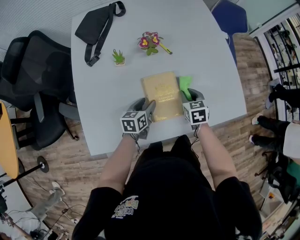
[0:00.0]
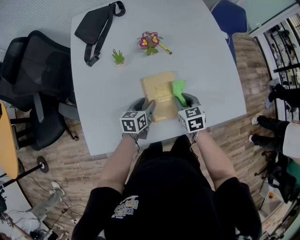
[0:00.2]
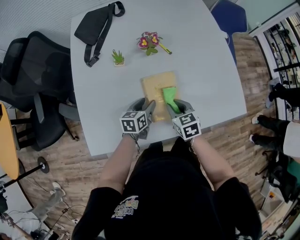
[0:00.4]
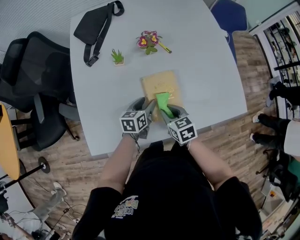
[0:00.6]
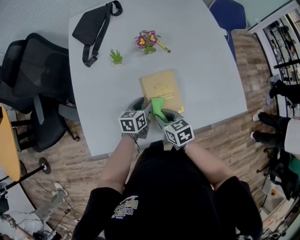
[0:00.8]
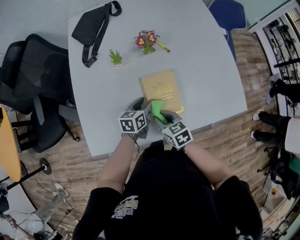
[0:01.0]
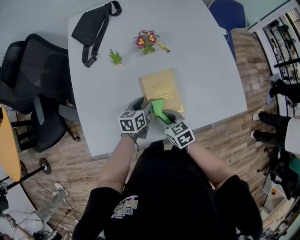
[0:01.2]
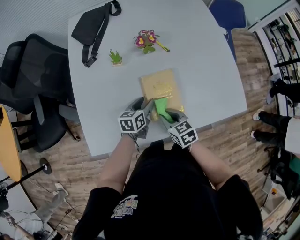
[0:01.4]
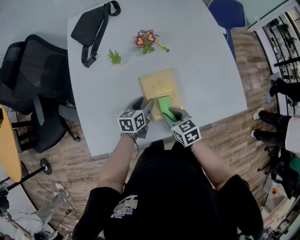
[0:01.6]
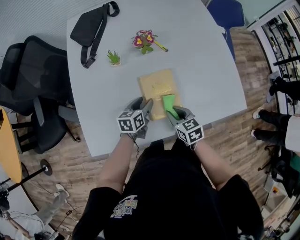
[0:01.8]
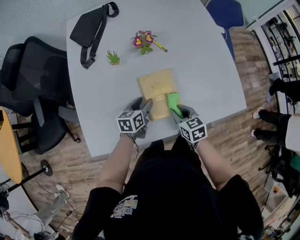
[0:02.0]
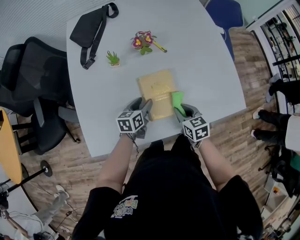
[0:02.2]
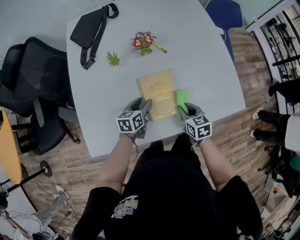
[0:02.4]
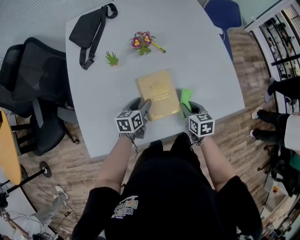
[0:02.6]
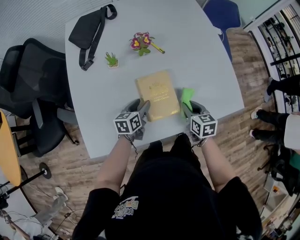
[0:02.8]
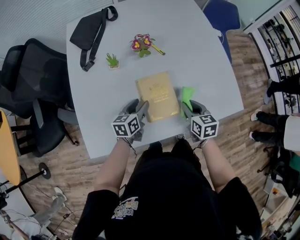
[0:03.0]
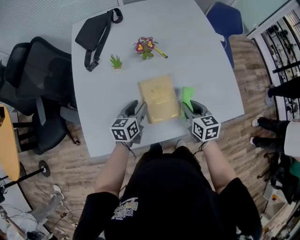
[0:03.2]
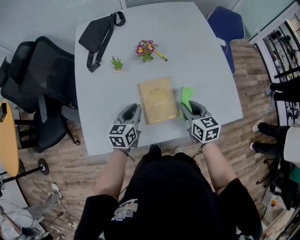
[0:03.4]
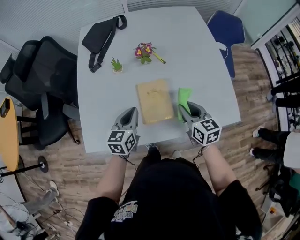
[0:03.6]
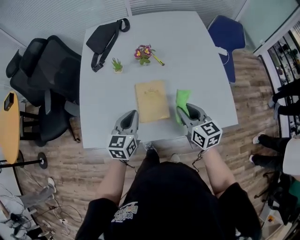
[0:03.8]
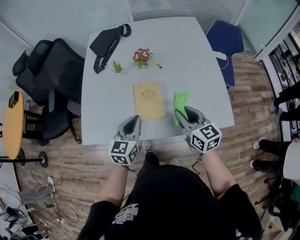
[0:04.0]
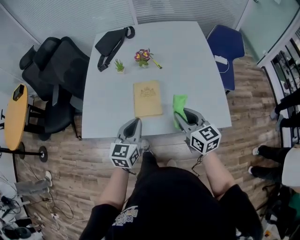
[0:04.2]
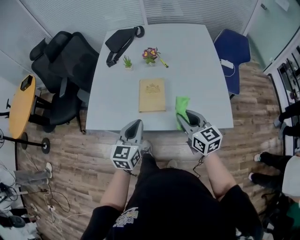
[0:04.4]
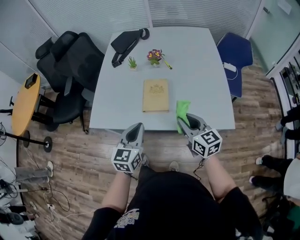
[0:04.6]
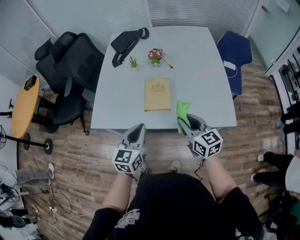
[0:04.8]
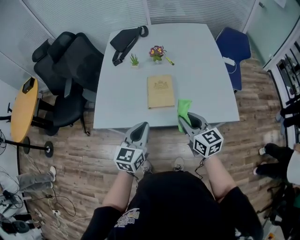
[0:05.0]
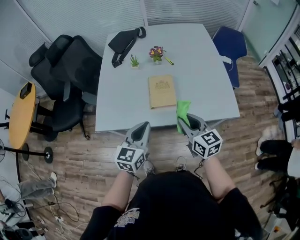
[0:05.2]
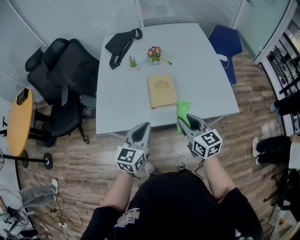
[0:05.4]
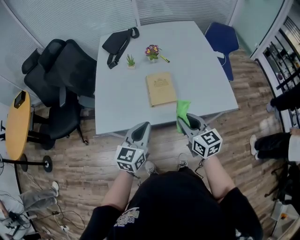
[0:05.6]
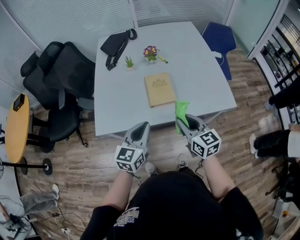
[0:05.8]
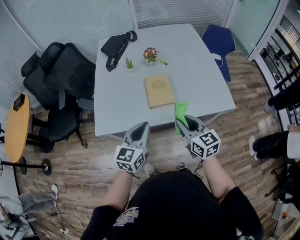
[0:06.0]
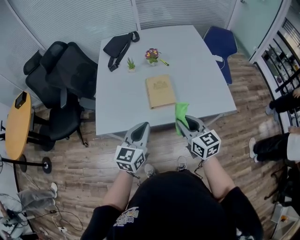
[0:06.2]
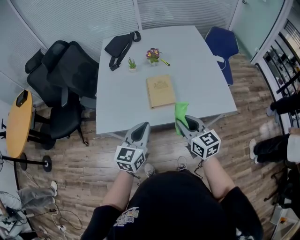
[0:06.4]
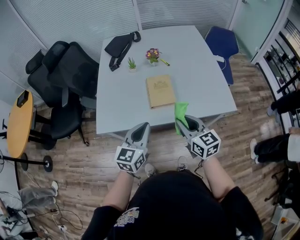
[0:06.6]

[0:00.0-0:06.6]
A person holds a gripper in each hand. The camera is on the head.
0:00.0 to 0:01.6: The right gripper heads backward and to the left, covering roughly 15 cm, and changes its angle by about 20 degrees.
0:01.6 to 0:03.2: The right gripper shifts roughly 15 cm to the right, upward and forward. The left gripper shifts roughly 5 cm upward.
0:03.2 to 0:05.0: The grippers both shift backward and upward by some 25 cm. The left gripper turns by some 30 degrees, and closes up; the right gripper swivels some 30 degrees.
0:05.0 to 0:06.6: The right gripper moves some 5 cm.

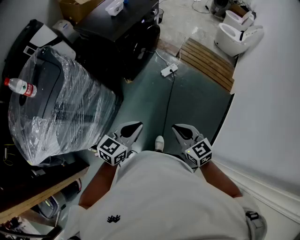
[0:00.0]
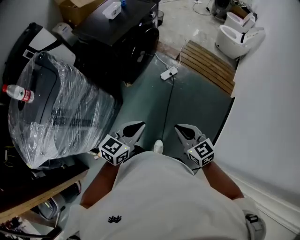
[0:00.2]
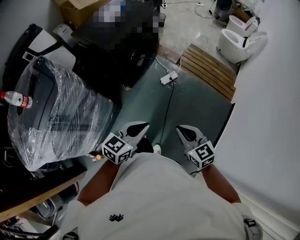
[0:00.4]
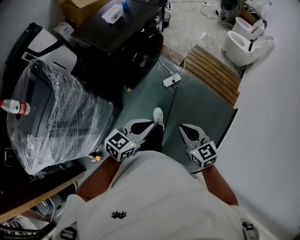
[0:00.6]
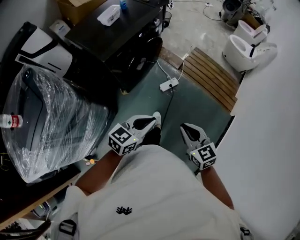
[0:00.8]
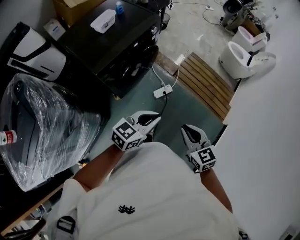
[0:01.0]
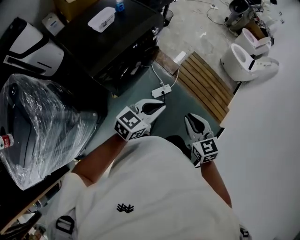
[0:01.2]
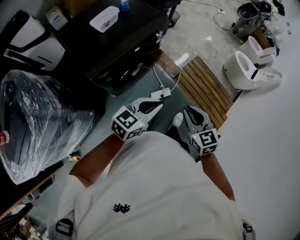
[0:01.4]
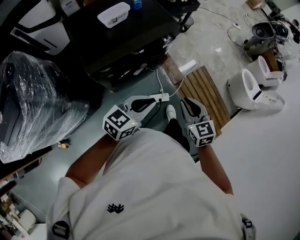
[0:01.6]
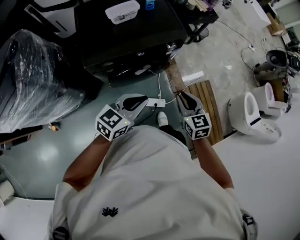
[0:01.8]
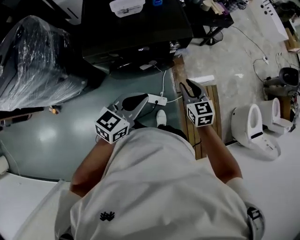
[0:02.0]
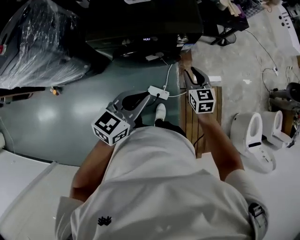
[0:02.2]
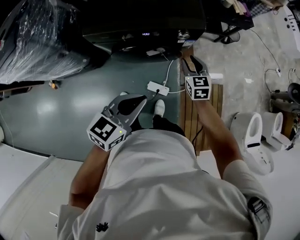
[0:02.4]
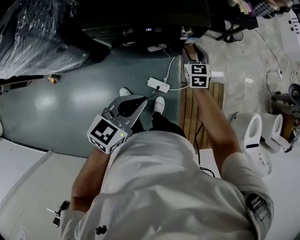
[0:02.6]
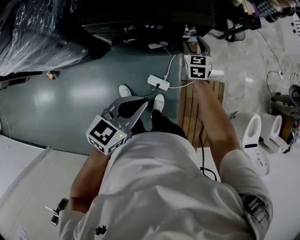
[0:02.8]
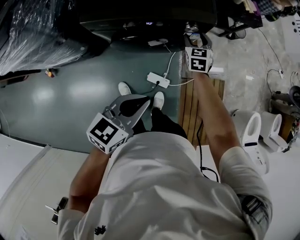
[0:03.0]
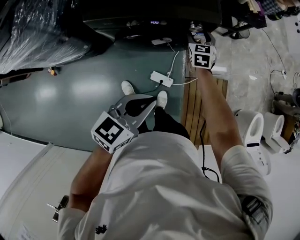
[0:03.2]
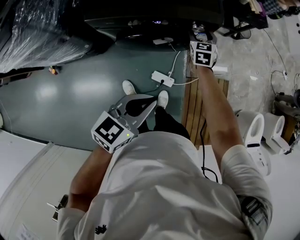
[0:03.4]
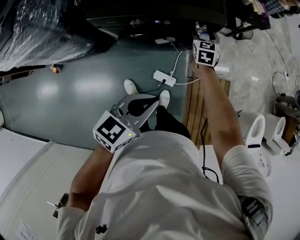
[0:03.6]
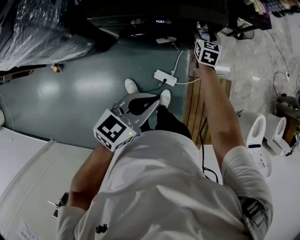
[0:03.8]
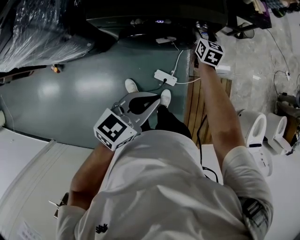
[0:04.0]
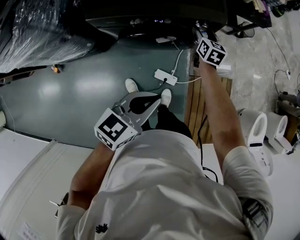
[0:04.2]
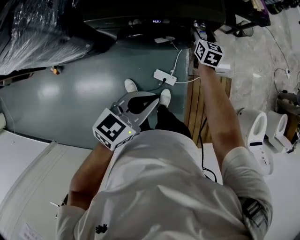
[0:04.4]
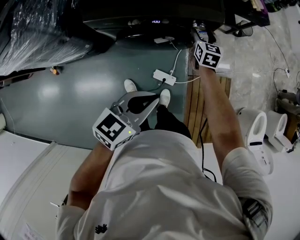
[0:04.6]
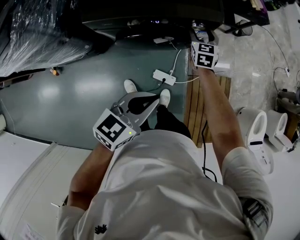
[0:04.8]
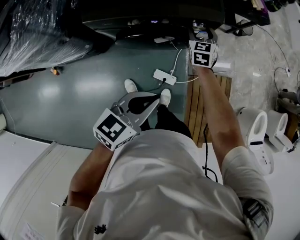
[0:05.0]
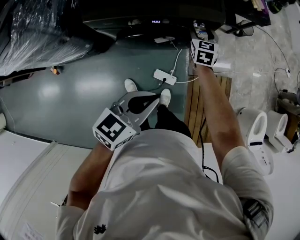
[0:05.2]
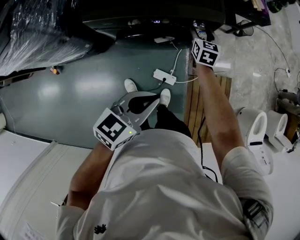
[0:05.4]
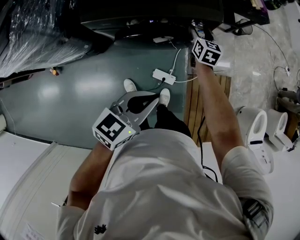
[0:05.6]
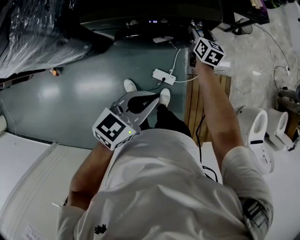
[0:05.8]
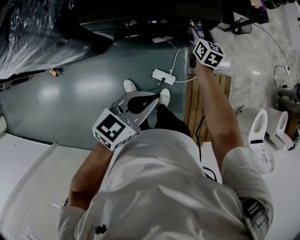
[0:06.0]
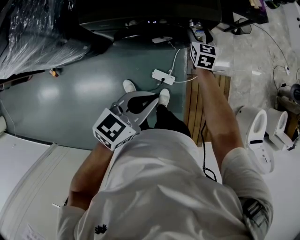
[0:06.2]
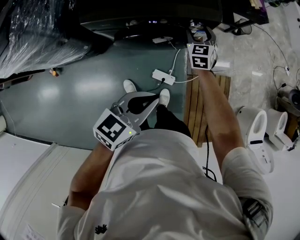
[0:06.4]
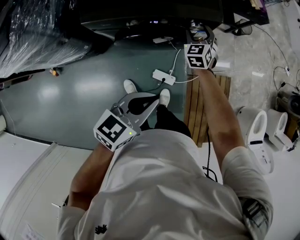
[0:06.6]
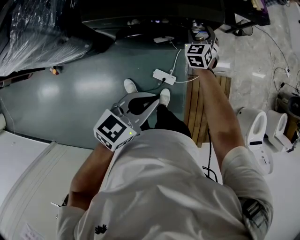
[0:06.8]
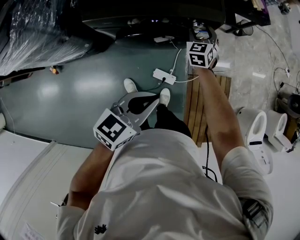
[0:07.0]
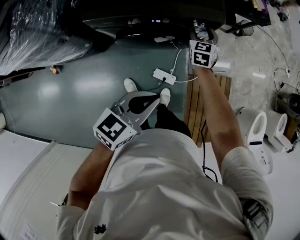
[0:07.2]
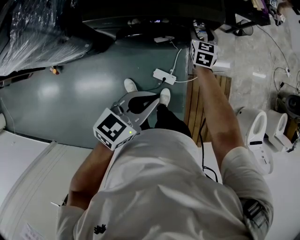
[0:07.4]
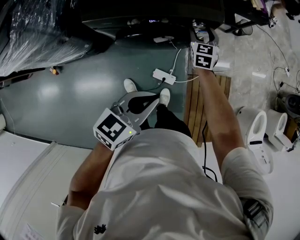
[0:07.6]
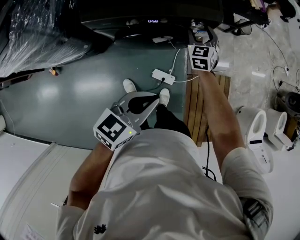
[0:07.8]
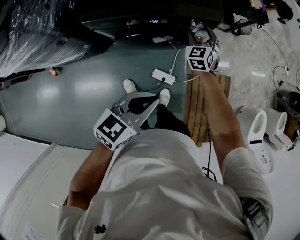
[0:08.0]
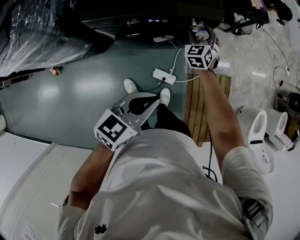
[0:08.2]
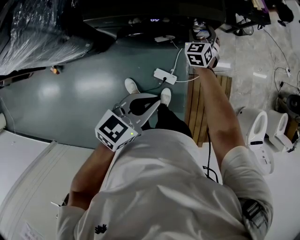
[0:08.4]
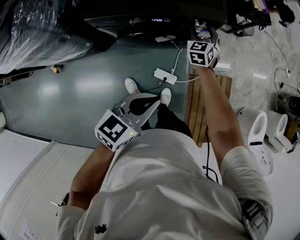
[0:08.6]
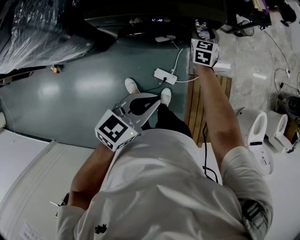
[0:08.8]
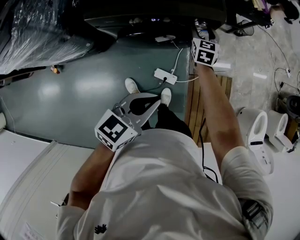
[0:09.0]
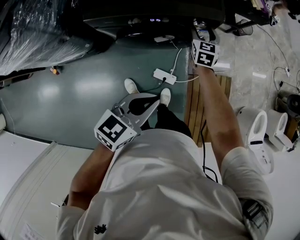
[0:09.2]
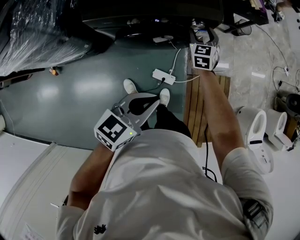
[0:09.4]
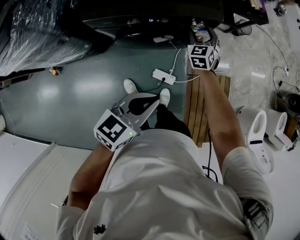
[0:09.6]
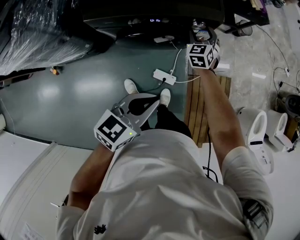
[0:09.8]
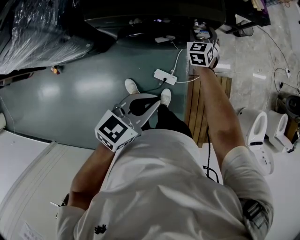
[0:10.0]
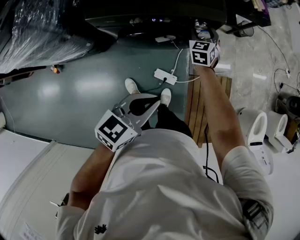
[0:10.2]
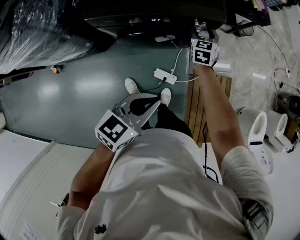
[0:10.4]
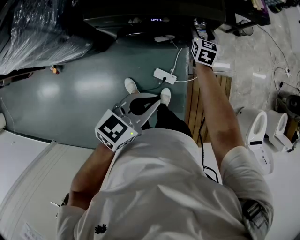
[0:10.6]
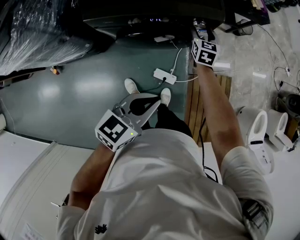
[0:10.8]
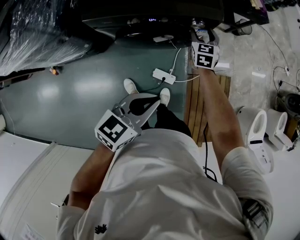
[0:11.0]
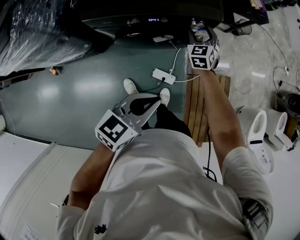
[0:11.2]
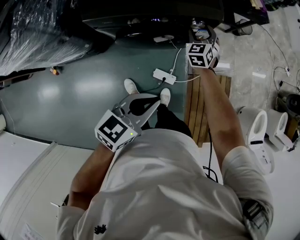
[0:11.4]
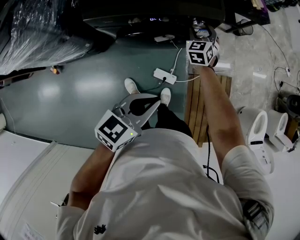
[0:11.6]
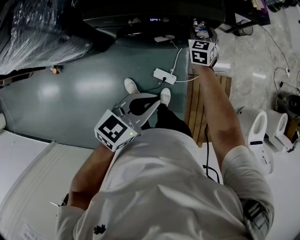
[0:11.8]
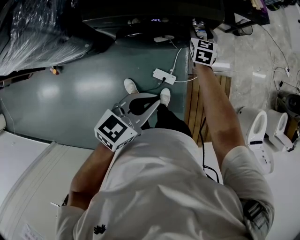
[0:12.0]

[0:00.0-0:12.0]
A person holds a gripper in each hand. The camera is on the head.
0:00.0 to 0:01.6: Both grippers are carried forward, approximately 60 cm.
0:01.6 to 0:03.0: The right gripper moves some 40 cm, rotates roughly 20 degrees, and opens its fingers. Meanwhile the left gripper changes place by some 10 cm, and swivels about 40 degrees.
0:03.0 to 0:04.4: The right gripper changes its angle by some 20 degrees.
0:06.0 to 0:07.6: The right gripper changes its angle by some 30 degrees.
0:07.6 to 0:09.0: The grippers make only small movements.
0:10.4 to 0:12.0: The grippers stay close to where they were, moving slightly.

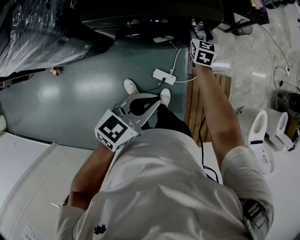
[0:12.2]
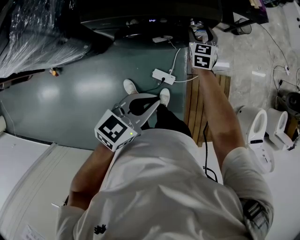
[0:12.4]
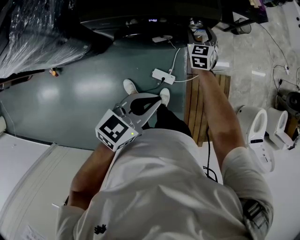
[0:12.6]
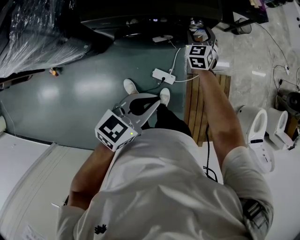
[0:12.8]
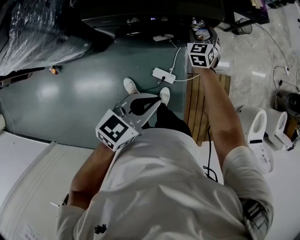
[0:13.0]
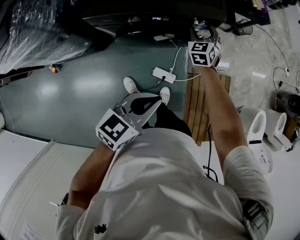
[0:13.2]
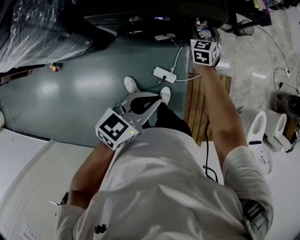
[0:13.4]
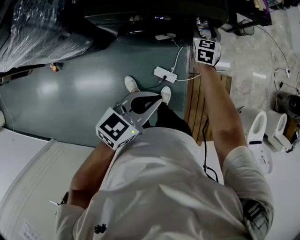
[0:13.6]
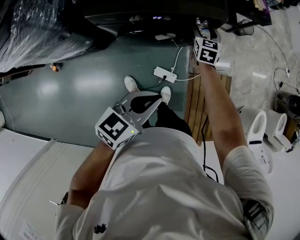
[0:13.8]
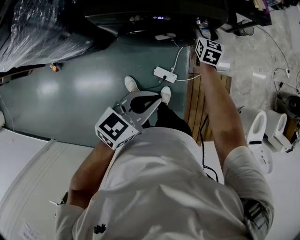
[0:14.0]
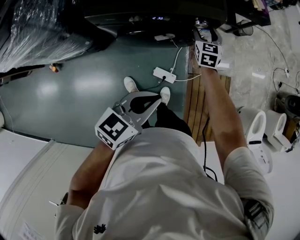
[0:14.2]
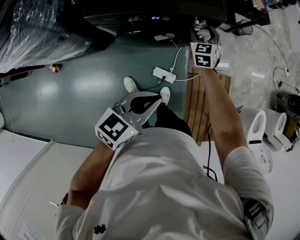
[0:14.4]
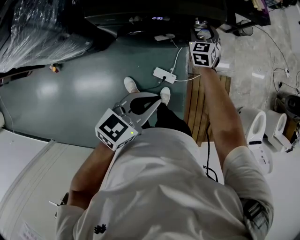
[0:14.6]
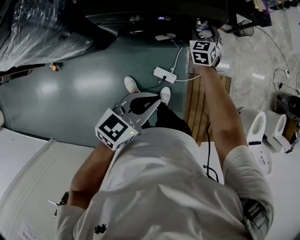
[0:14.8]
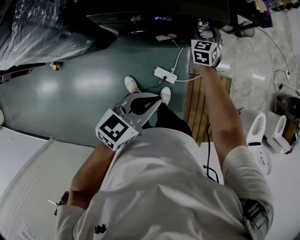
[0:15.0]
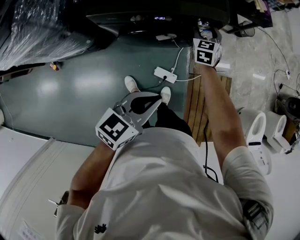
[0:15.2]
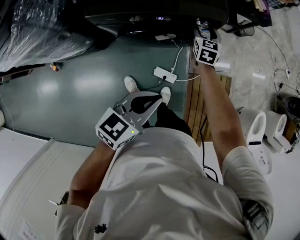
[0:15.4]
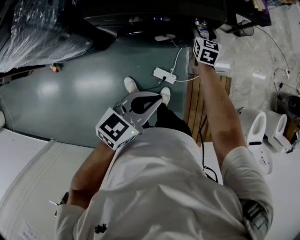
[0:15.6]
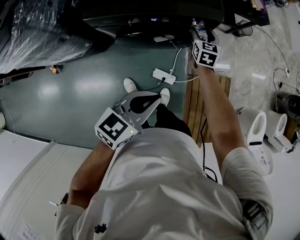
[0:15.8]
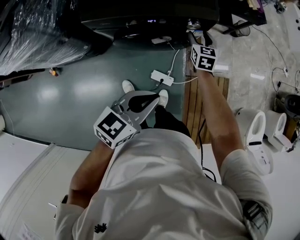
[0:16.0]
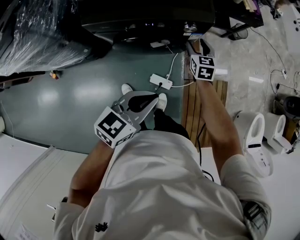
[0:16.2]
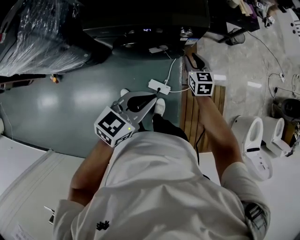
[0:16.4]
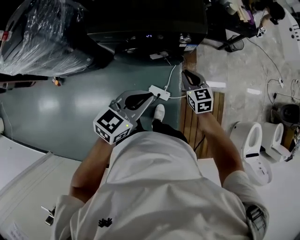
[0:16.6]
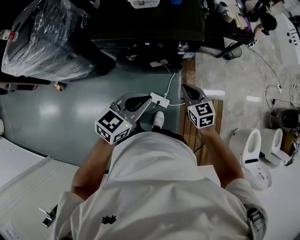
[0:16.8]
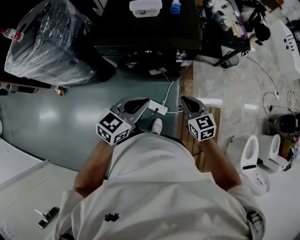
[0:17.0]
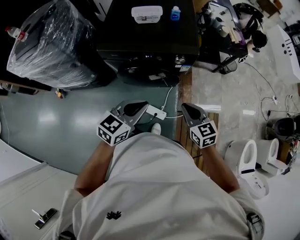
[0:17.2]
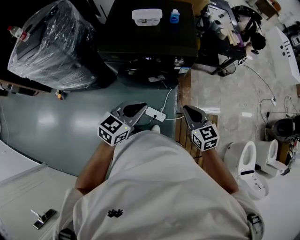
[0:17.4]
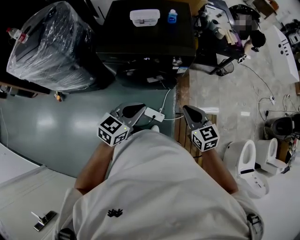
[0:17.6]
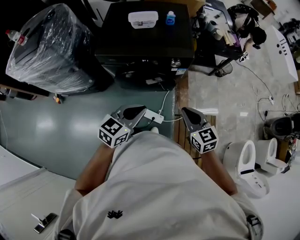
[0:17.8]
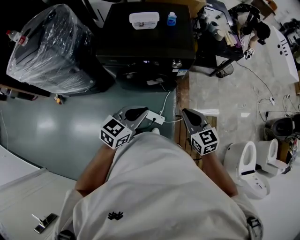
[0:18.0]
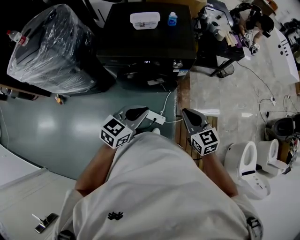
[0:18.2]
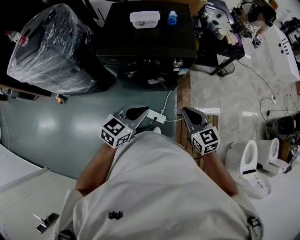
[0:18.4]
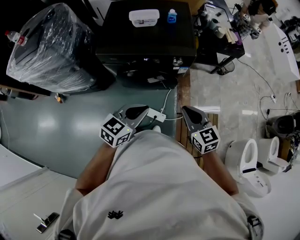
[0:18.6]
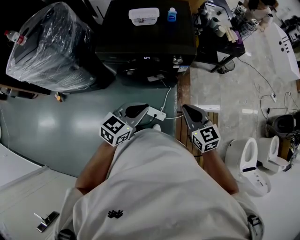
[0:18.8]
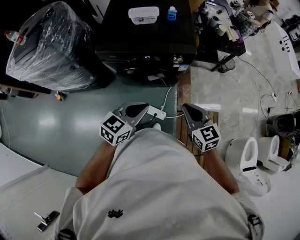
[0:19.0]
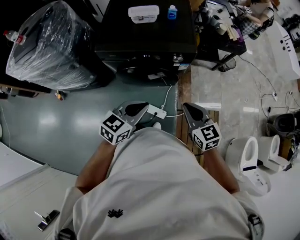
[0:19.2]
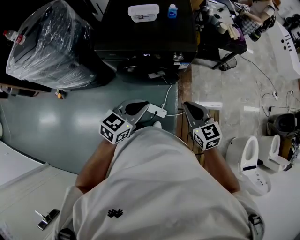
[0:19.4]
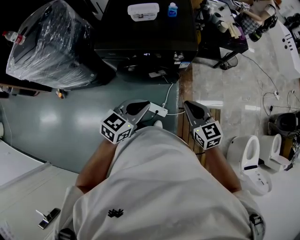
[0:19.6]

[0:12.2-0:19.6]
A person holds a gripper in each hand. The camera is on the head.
0:13.6 to 0:15.2: The grippers make only small movements.
0:15.2 to 0:16.6: The right gripper travels backward by about 15 cm, rotates approximately 30 degrees, and closes.
0:16.6 to 0:18.2: The right gripper travels upward and backward by some 20 cm.
0:18.2 to 0:19.6: The grippers stay close to where they were, moving slightly.
